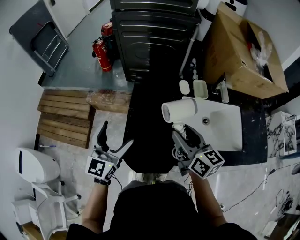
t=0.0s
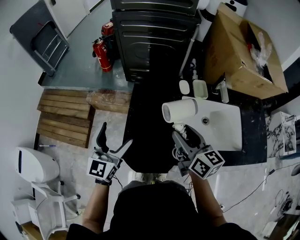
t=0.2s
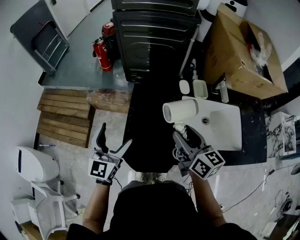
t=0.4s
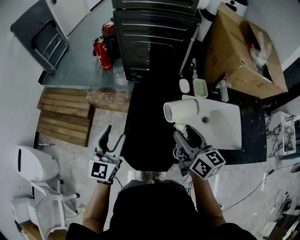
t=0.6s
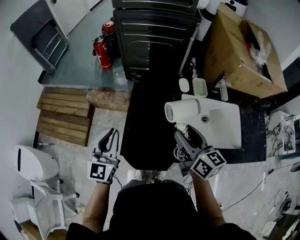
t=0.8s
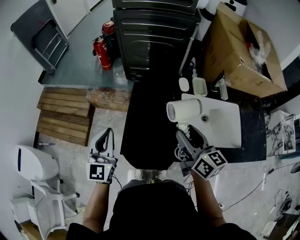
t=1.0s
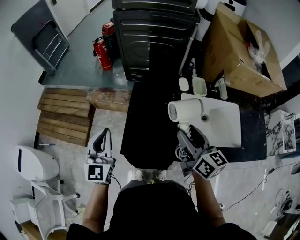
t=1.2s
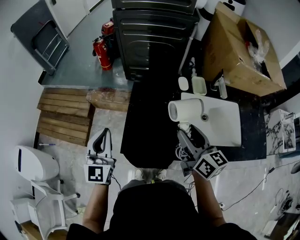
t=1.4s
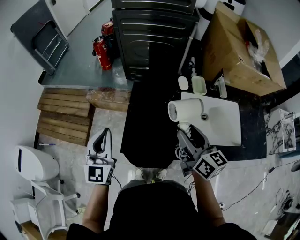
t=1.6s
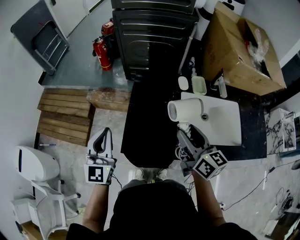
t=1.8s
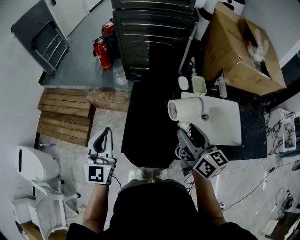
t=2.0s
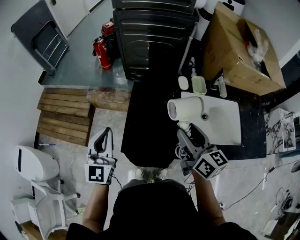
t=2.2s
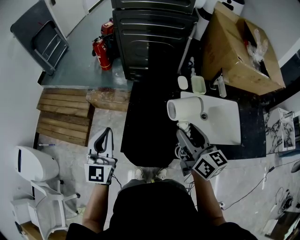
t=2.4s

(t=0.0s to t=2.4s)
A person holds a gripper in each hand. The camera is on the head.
t=0.0s - t=1.2s: The left gripper changes place by some 5 cm, and closes its fingers.
t=1.2s - t=2.4s: The grippers make only small movements.

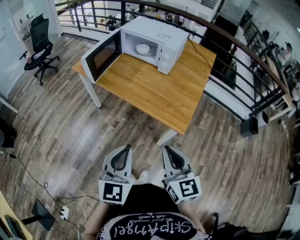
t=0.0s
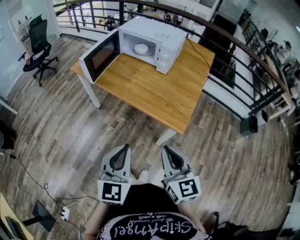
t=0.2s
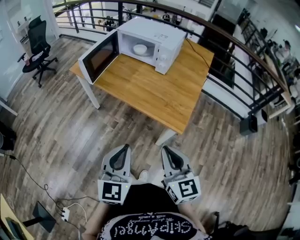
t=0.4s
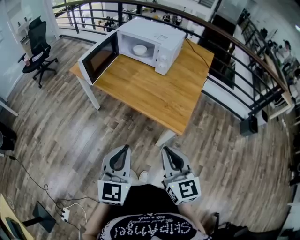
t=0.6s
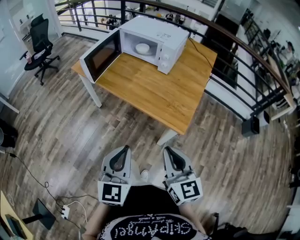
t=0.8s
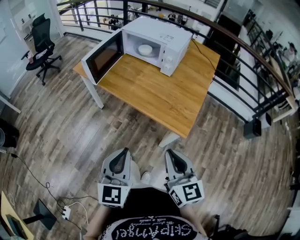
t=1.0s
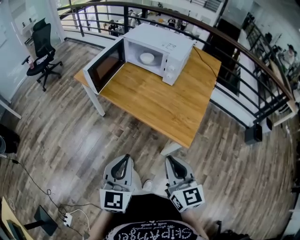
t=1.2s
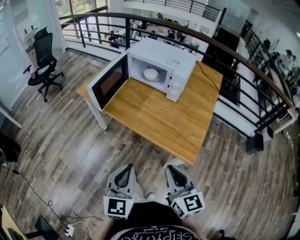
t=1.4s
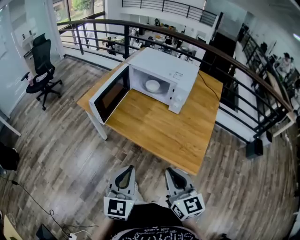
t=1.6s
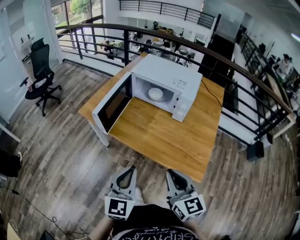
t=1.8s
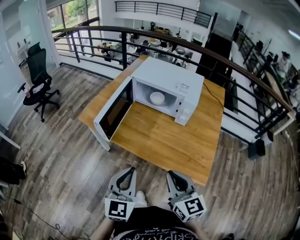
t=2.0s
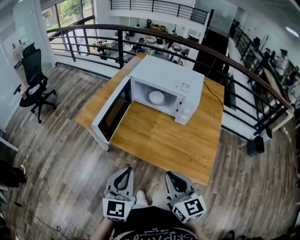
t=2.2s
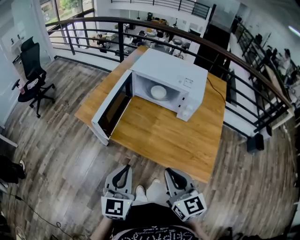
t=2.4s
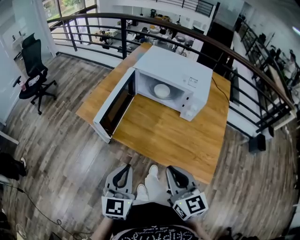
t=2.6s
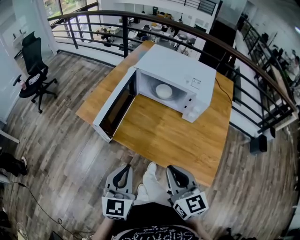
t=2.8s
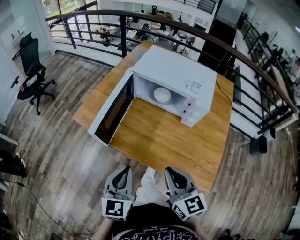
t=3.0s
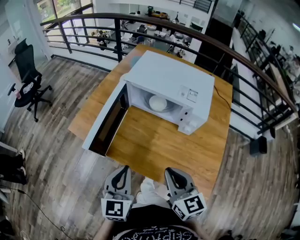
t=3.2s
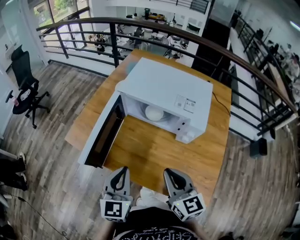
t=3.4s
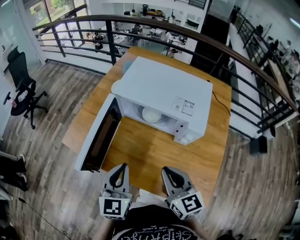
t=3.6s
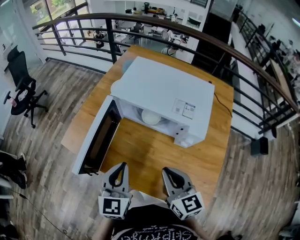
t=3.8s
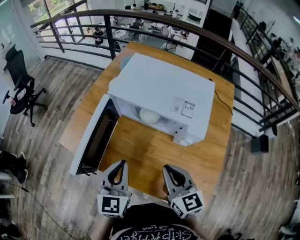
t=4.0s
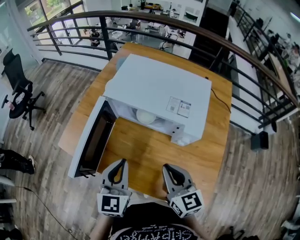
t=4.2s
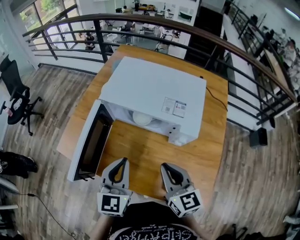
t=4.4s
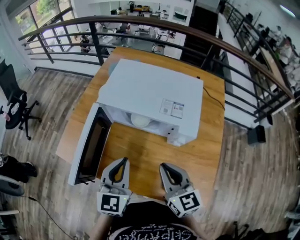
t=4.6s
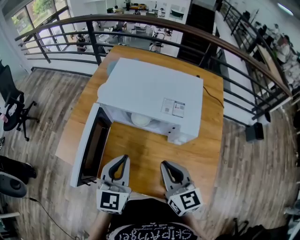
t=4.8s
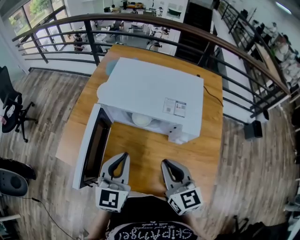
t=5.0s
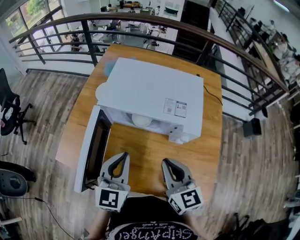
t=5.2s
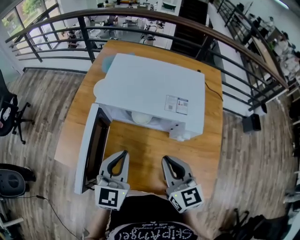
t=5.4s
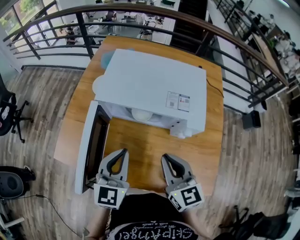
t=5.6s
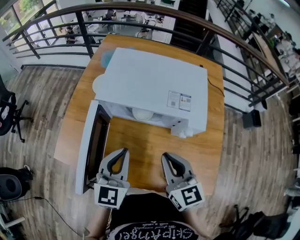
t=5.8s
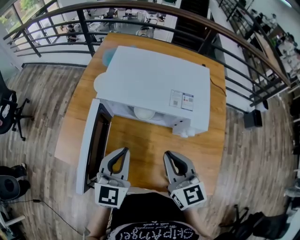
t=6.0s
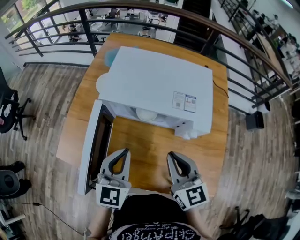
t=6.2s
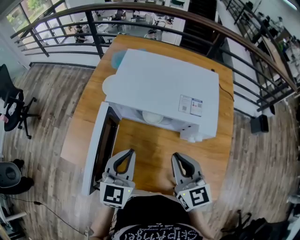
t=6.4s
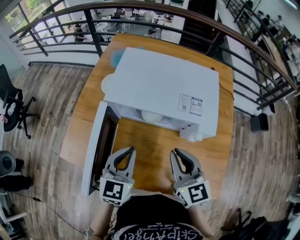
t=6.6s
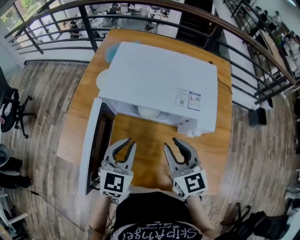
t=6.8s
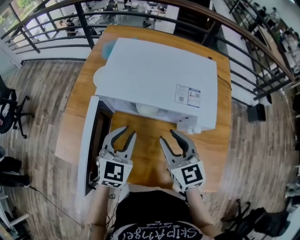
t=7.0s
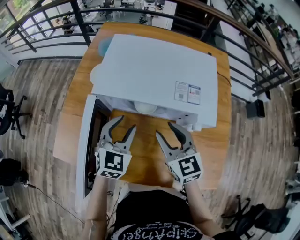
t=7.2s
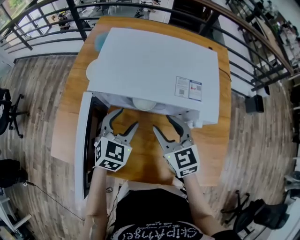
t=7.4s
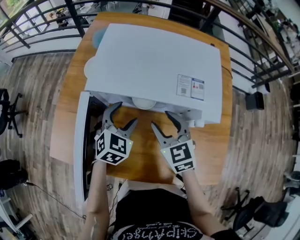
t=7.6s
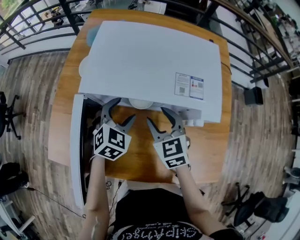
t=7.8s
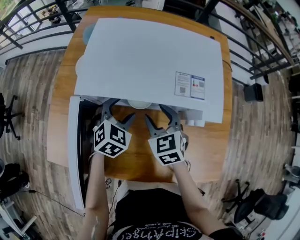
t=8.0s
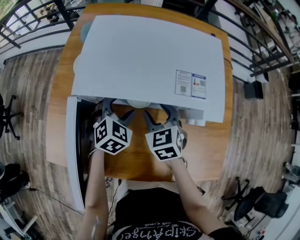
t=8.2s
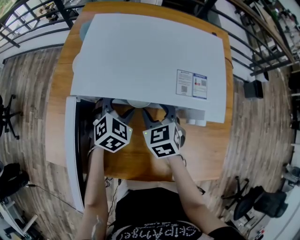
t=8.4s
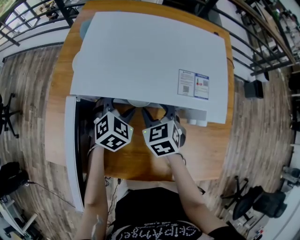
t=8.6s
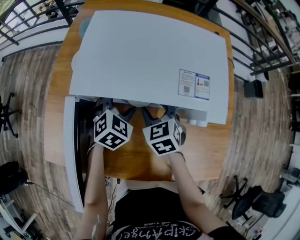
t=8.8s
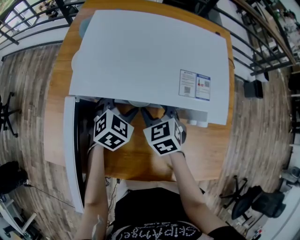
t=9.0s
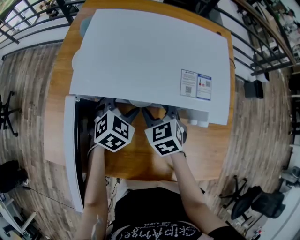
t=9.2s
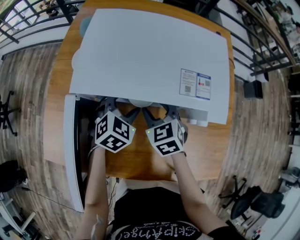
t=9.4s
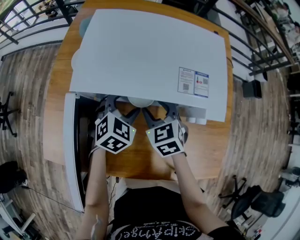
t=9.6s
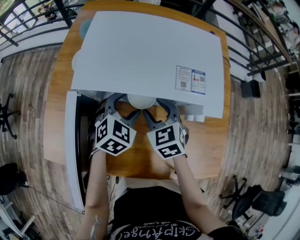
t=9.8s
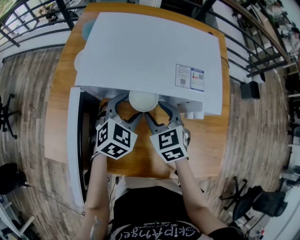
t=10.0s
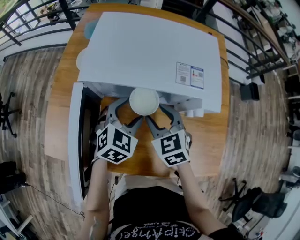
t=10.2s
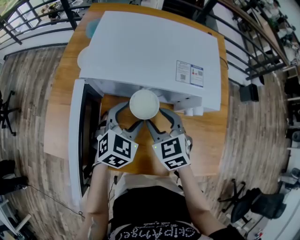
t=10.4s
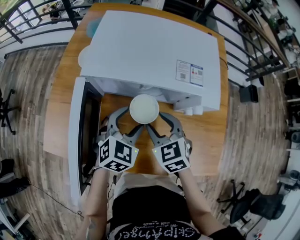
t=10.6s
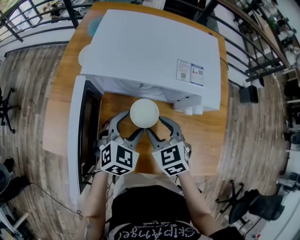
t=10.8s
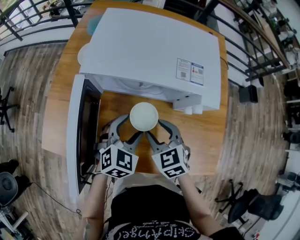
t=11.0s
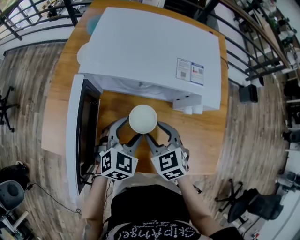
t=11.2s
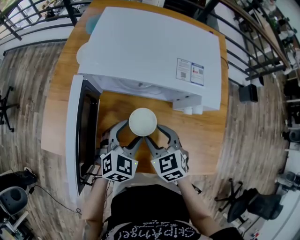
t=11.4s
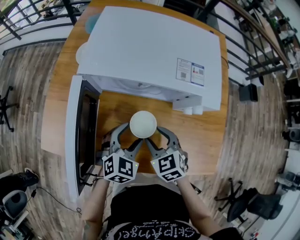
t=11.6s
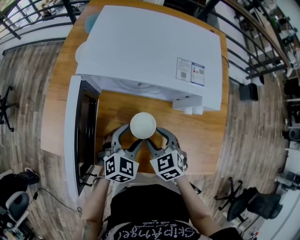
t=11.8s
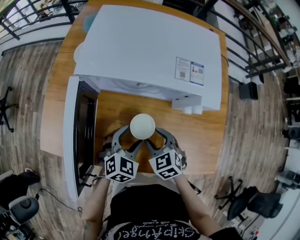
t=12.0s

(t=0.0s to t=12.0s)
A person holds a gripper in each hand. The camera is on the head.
t=0.0s - t=1.6s: The grippers both shift forward and to the left by approximately 15 cm.
t=1.6s - t=3.0s: Both grippers move forward and to the left, approximately 20 cm.
t=3.0s - t=4.4s: Both grippers move forward and to the right, about 20 cm.
t=4.4s - t=6.0s: The left gripper moves roughly 5 cm. Meanwhile the right gripper ends up roughly 5 cm from where it was.
t=6.0s - t=7.6s: The right gripper goes about 15 cm forward and downward, and opens up, while the left gripper heads downward and forward, covering about 20 cm, changes its angle by about 40 degrees, and opens up.
t=7.6s - t=9.0s: The right gripper travels downward and forward by roughly 10 cm. The left gripper ends up roughly 5 cm from where it was.
t=9.0s - t=10.4s: The right gripper goes roughly 10 cm backward; the left gripper shifts approximately 10 cm backward and upward.
t=10.4s - t=12.0s: The right gripper travels downward and backward by about 10 cm. Meanwhile the left gripper goes some 10 cm backward and downward.

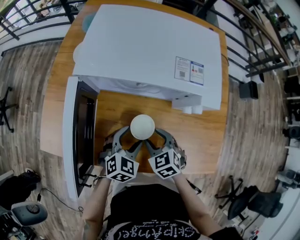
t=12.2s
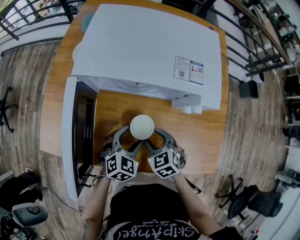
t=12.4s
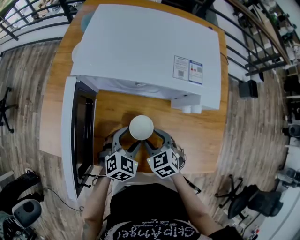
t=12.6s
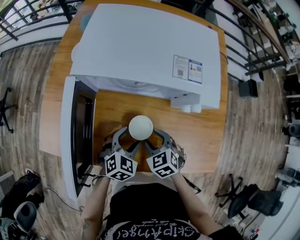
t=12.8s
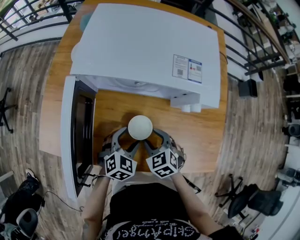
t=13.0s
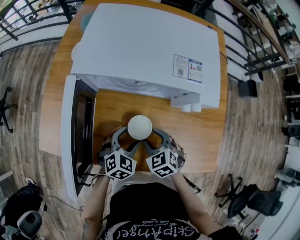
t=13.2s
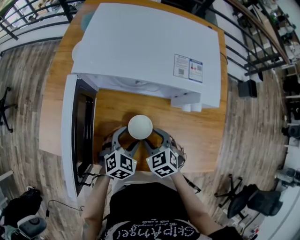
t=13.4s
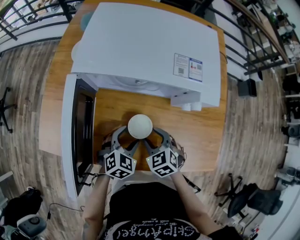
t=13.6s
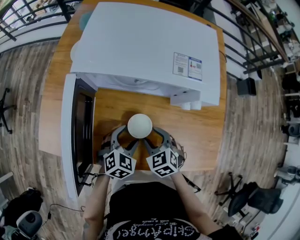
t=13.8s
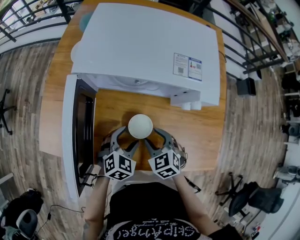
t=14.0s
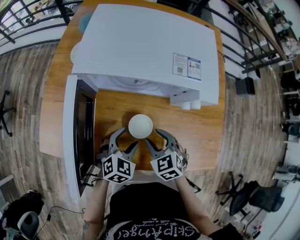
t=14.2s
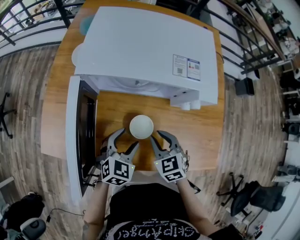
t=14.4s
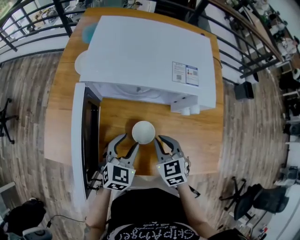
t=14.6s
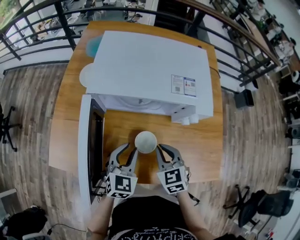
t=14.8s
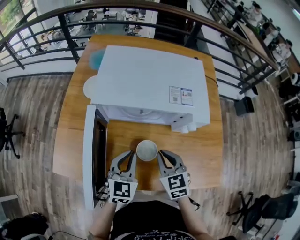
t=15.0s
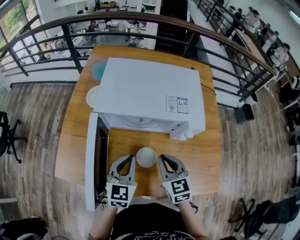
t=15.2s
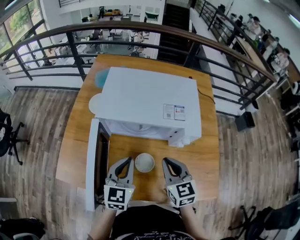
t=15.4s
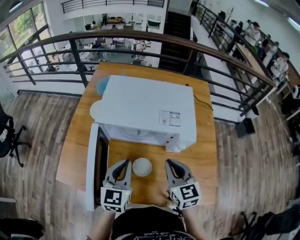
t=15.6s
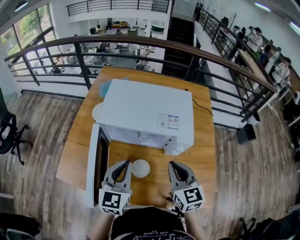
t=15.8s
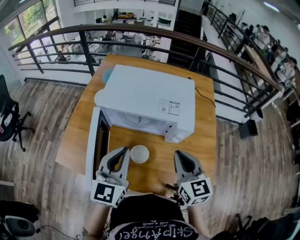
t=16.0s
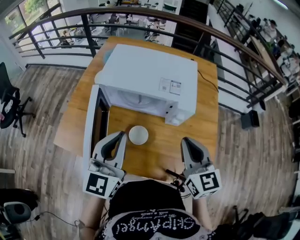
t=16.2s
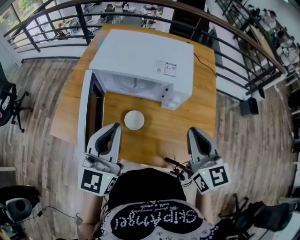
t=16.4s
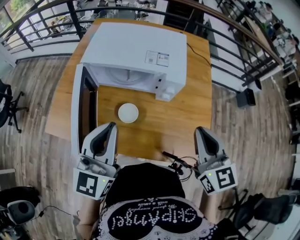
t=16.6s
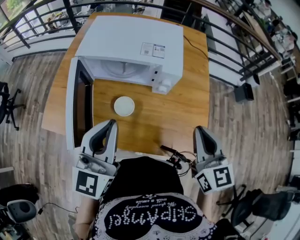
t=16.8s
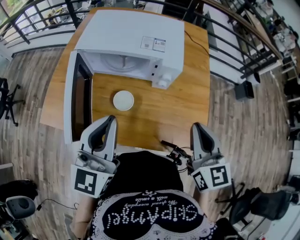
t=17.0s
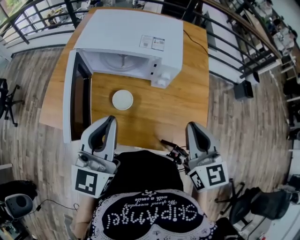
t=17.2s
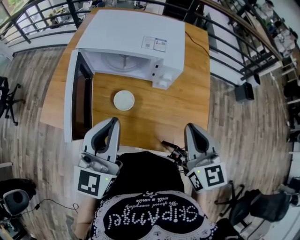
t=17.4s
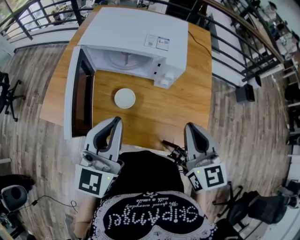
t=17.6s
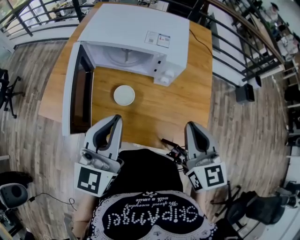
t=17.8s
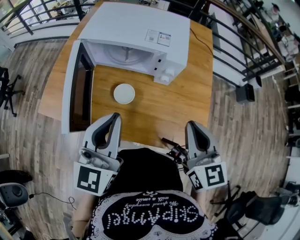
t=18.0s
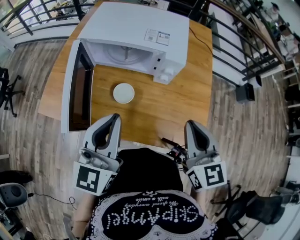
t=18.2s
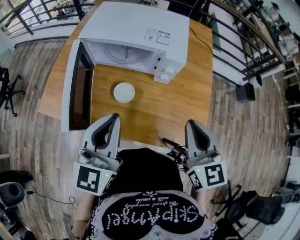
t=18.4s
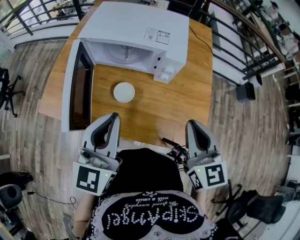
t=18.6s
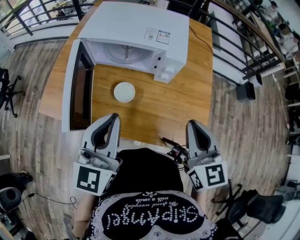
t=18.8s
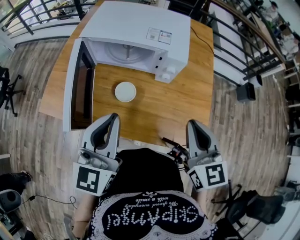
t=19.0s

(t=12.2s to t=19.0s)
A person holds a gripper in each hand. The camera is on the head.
t=12.2s - t=13.6s: The grippers stay close to where they were, moving slightly.
t=13.6s - t=15.0s: Both grippers move upward, roughly 10 cm. The right gripper rotates some 20 degrees, and closes up. The left gripper rotates about 30 degrees, and closes up.
t=15.0s - t=16.2s: The right gripper is displaced upward and to the right by about 20 cm, and changes its angle by about 20 degrees; the left gripper shifts approximately 20 cm upward, and changes its angle by roughly 30 degrees.
t=16.2s - t=17.6s: The grippers both shift backward and to the right by about 10 cm.
t=17.6s - t=19.0s: The grippers make only small movements.

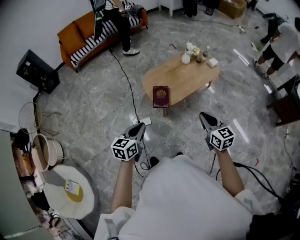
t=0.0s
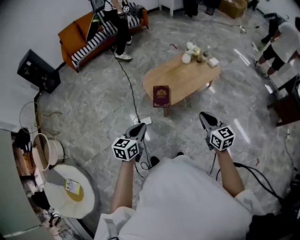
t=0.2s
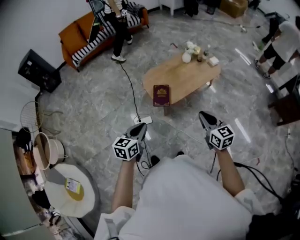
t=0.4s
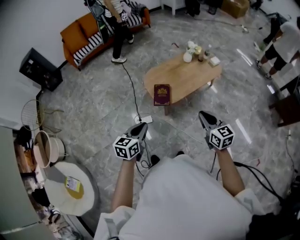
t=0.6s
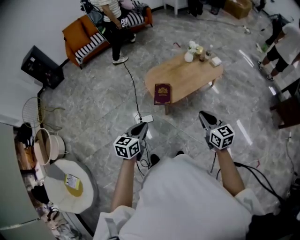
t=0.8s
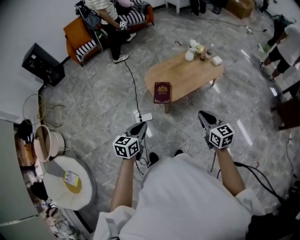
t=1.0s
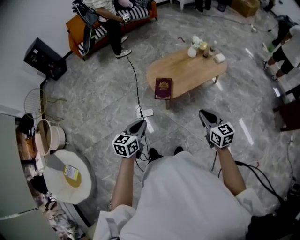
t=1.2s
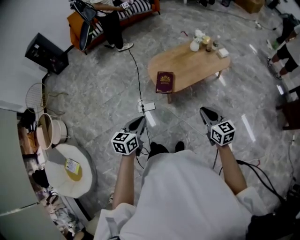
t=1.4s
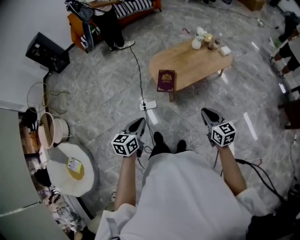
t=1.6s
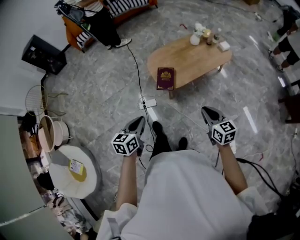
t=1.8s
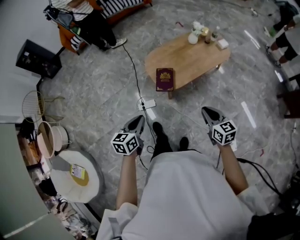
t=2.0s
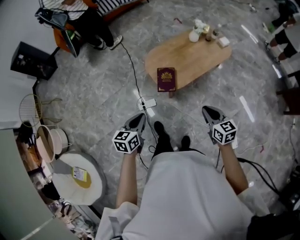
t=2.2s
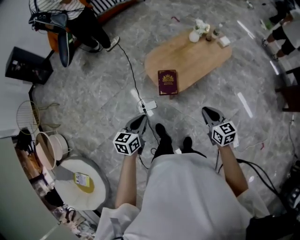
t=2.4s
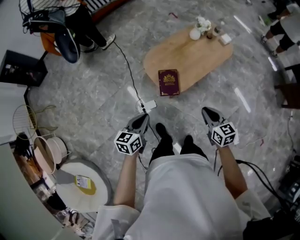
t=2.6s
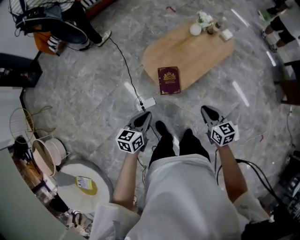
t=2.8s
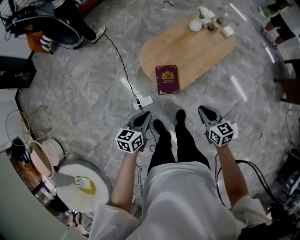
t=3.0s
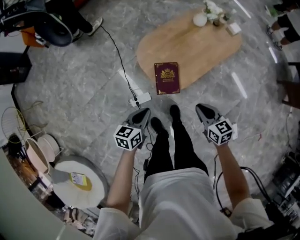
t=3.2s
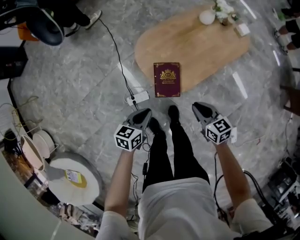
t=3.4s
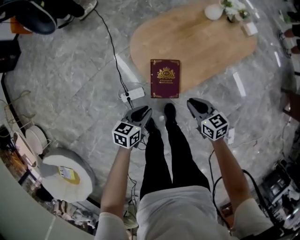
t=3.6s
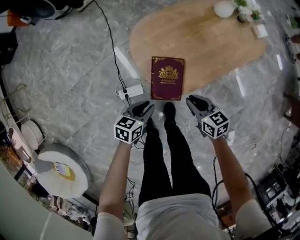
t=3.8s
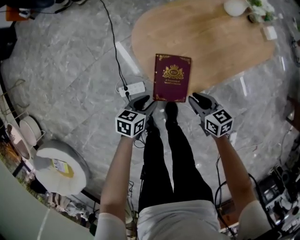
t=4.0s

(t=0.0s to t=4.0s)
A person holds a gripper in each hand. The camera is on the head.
t=0.0s - t=1.4s: The right gripper moves approximately 5 cm, while the left gripper moves some 5 cm.
t=1.4s - t=2.6s: The grippers both shift forward, to the left and downward by some 20 cm.
t=2.6s - t=4.0s: The left gripper heads downward, covering about 40 cm, rotates approximately 20 degrees, and opens its fingers. Meanwhile the right gripper is displaced downward and forward by some 40 cm, and rotates approximately 30 degrees.
